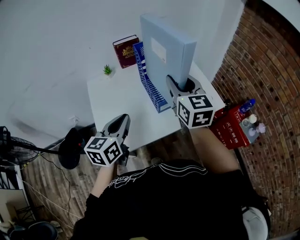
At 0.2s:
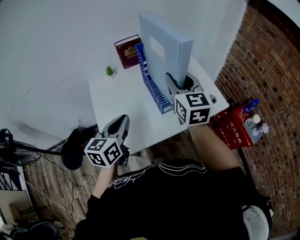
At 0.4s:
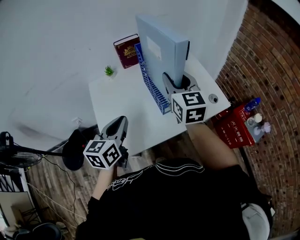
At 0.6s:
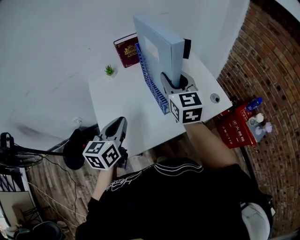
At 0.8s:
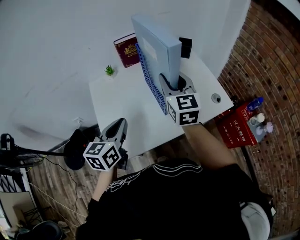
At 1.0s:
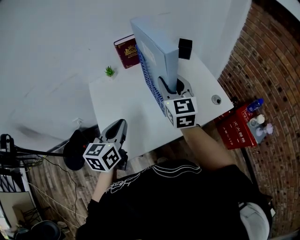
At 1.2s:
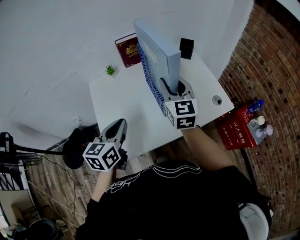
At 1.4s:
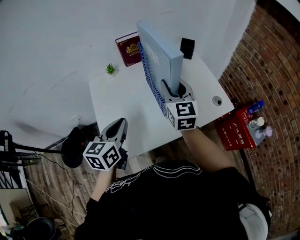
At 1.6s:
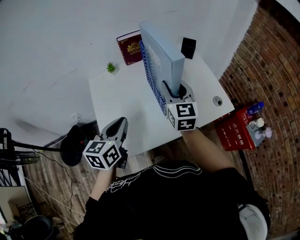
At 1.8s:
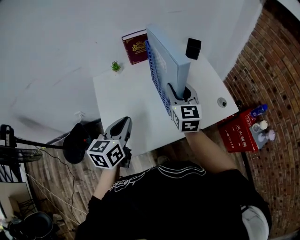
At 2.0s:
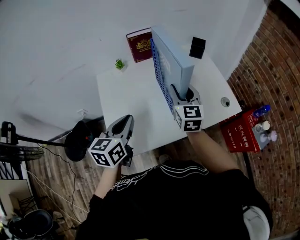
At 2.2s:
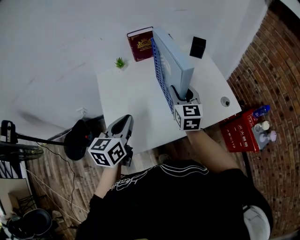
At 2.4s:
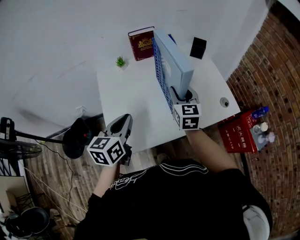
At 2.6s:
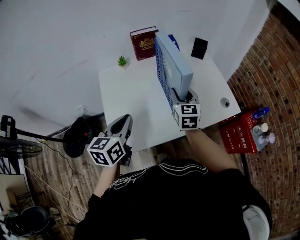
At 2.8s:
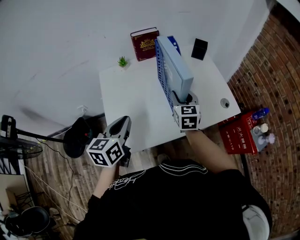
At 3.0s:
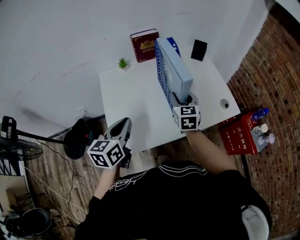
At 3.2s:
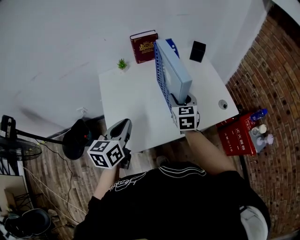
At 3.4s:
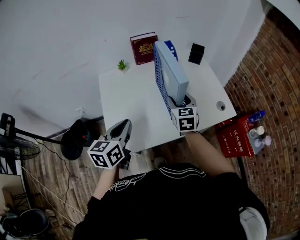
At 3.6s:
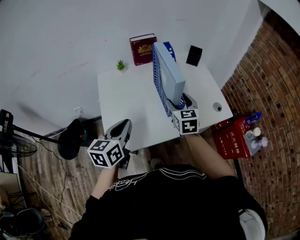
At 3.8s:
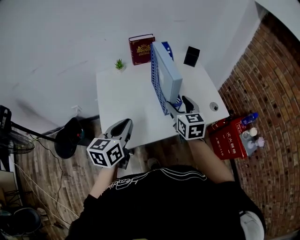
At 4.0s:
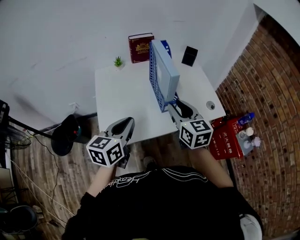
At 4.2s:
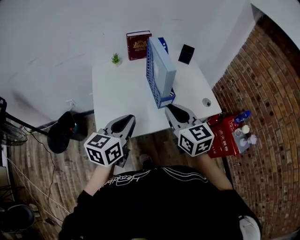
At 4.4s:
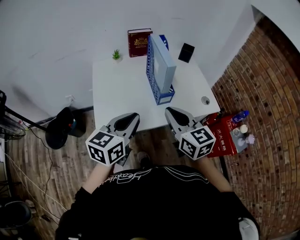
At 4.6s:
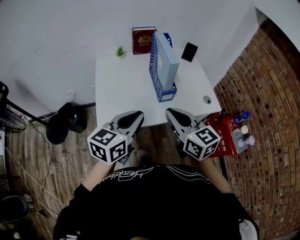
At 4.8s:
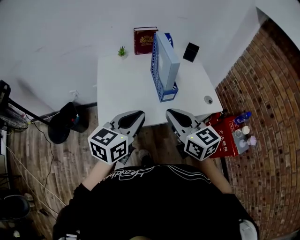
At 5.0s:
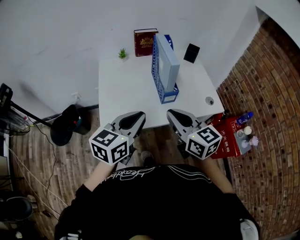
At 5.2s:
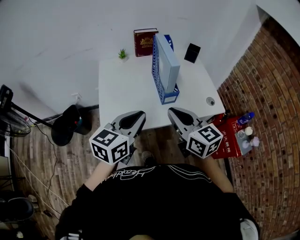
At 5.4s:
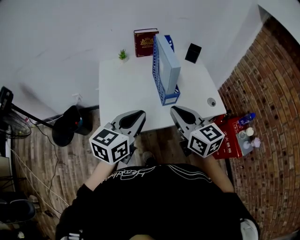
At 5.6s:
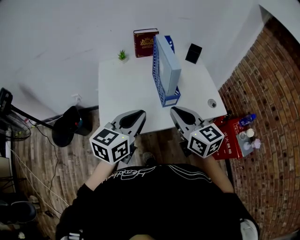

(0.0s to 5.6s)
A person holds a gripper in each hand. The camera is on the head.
0.0s - 1.4s: The left gripper moves roughly 5 cm. Meanwhile the right gripper is displaced downward and forward by roughly 10 cm.
1.4s - 2.8s: The right gripper is displaced downward by approximately 10 cm.
2.8s - 4.2s: The left gripper travels to the right and backward by approximately 10 cm, while the right gripper shifts some 20 cm backward and upward, turns by about 20 degrees, and closes.

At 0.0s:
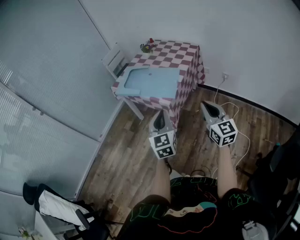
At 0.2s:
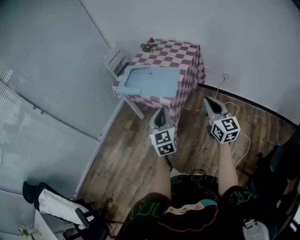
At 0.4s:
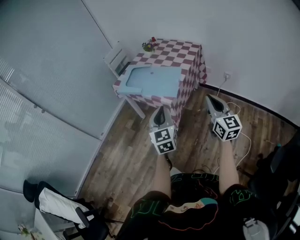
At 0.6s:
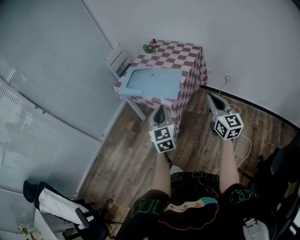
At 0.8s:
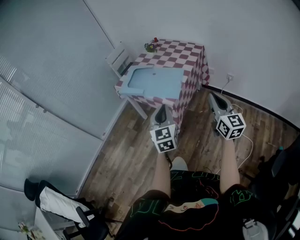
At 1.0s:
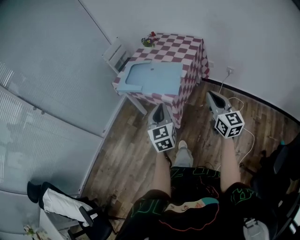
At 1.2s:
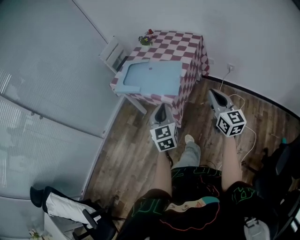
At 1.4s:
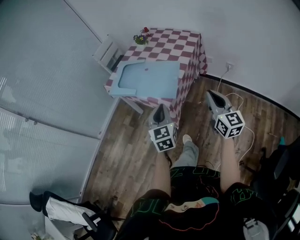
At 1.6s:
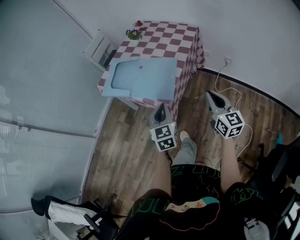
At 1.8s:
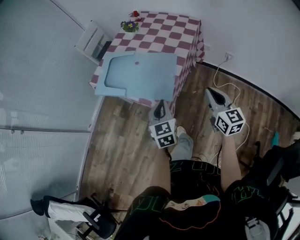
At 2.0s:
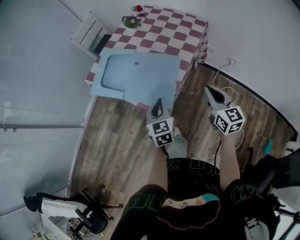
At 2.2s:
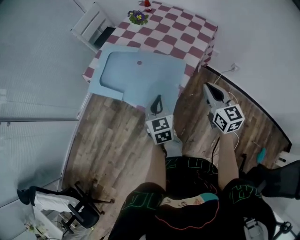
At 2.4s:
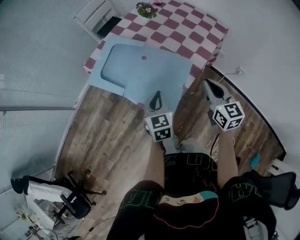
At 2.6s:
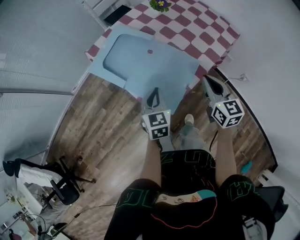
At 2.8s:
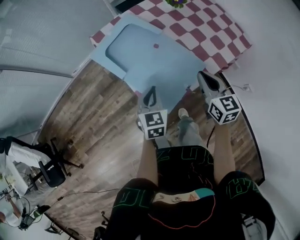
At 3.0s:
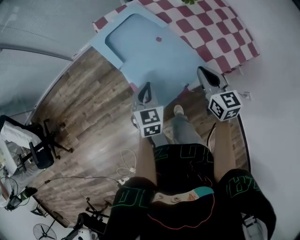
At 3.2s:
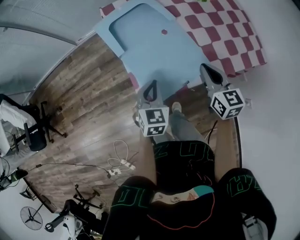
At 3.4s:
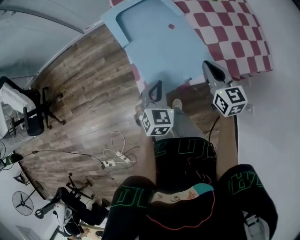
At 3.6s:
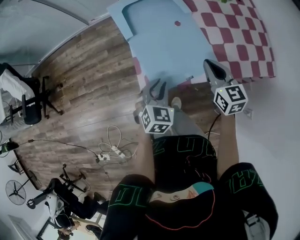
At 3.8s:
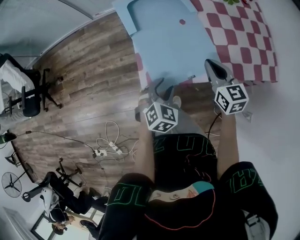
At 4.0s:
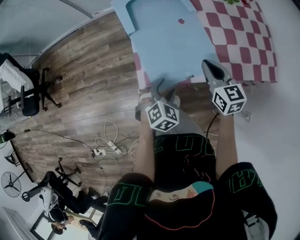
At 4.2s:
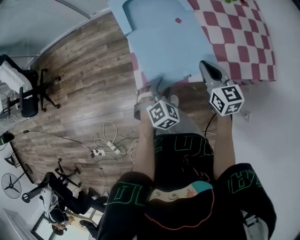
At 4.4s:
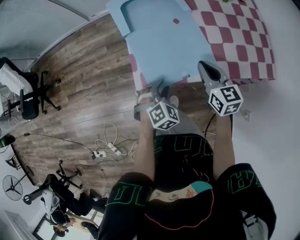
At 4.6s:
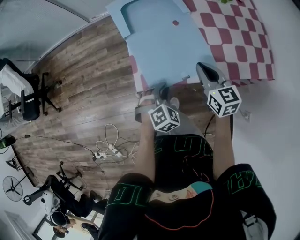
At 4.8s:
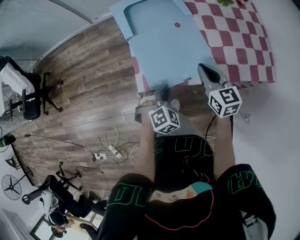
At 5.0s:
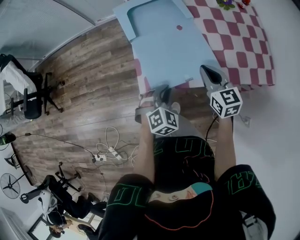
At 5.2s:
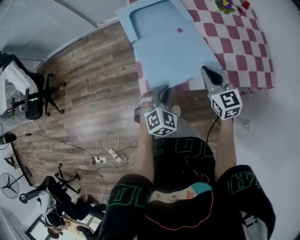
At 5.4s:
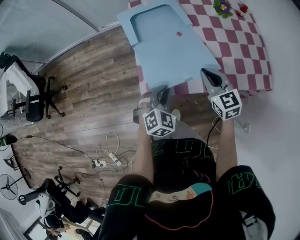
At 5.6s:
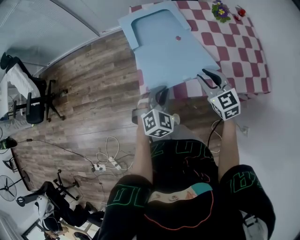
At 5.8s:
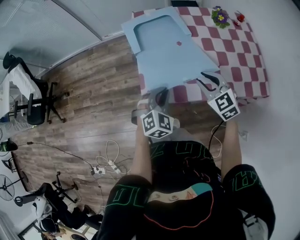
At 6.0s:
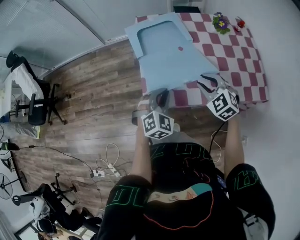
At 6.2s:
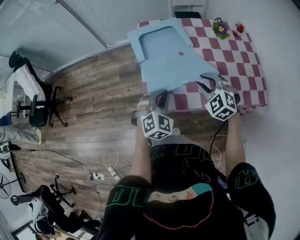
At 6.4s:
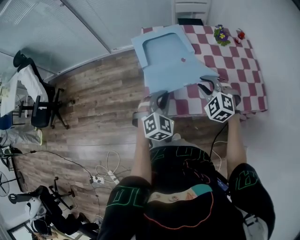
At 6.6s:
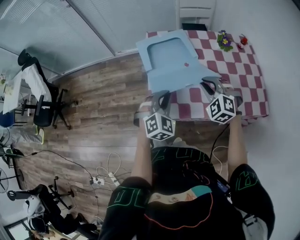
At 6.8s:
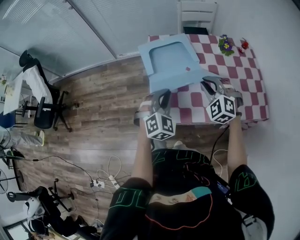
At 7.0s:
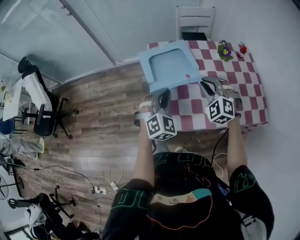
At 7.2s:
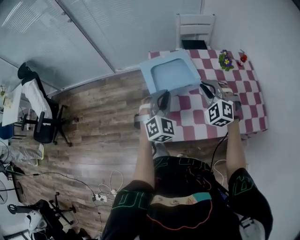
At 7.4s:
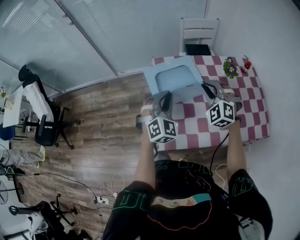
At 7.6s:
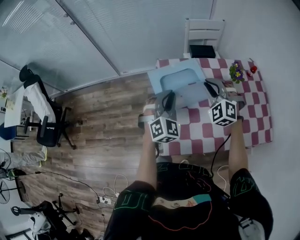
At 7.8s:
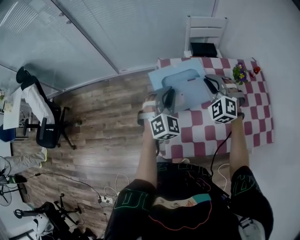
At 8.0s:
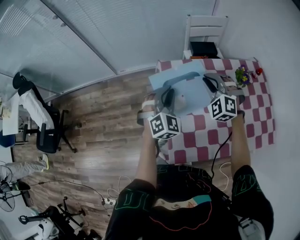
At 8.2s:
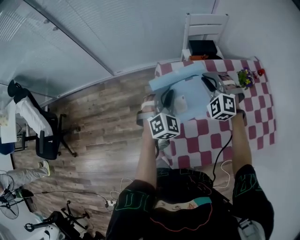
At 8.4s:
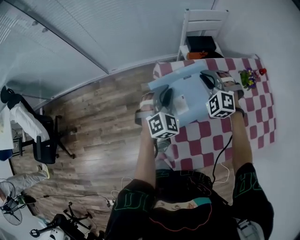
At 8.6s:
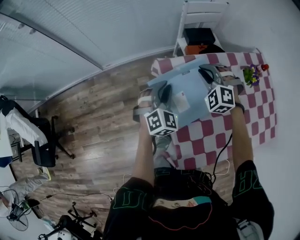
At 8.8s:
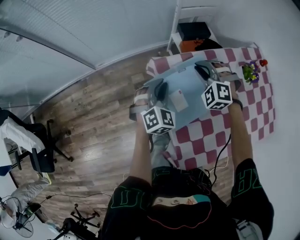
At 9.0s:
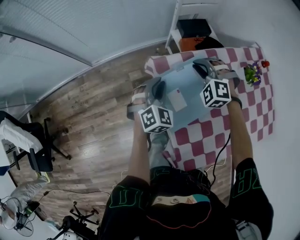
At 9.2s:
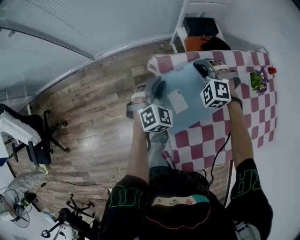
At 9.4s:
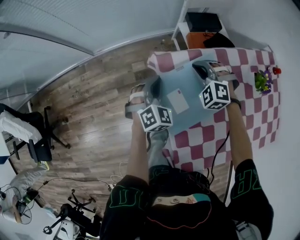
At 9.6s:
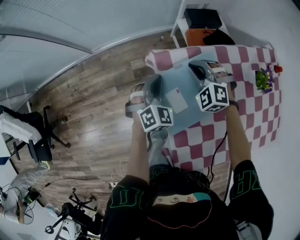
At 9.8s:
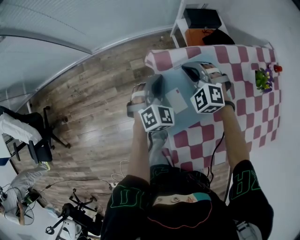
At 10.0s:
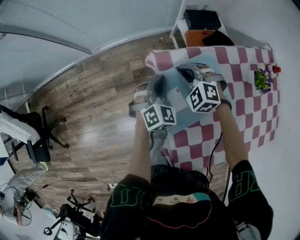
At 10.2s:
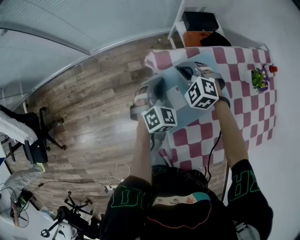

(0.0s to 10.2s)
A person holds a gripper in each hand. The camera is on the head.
0.0s - 1.4s: The left gripper is displaced forward and downward by some 15 cm. The right gripper goes some 10 cm forward.
1.4s - 3.0s: The right gripper changes place by roughly 35 cm, and changes its angle by approximately 50 degrees; the left gripper moves some 25 cm, and turns by some 40 degrees.
3.0s - 4.4s: The right gripper shifts approximately 5 cm downward, while the left gripper heads backward, downward and to the right, covering some 15 cm, rotates roughly 40 degrees, and opens up.
4.4s - 5.8s: The left gripper shifts about 10 cm upward, and closes its fingers. The right gripper turns by approximately 40 degrees, and opens up.
5.8s - 7.2s: Both grippers move forward and upward, approximately 15 cm. The right gripper turns by about 40 degrees.
7.2s - 8.8s: The right gripper travels forward and to the left by about 30 cm. The left gripper travels forward by some 25 cm.
8.8s - 10.2s: The left gripper travels downward by some 5 cm, while the right gripper heads downward and to the left, covering approximately 10 cm, and rotates roughly 20 degrees.

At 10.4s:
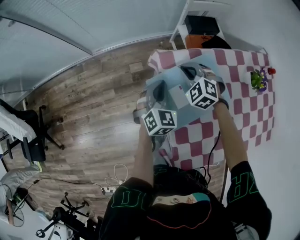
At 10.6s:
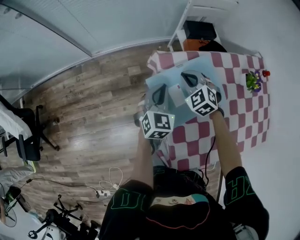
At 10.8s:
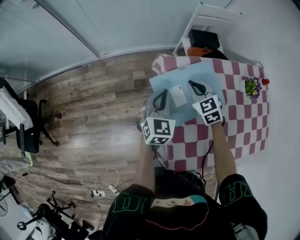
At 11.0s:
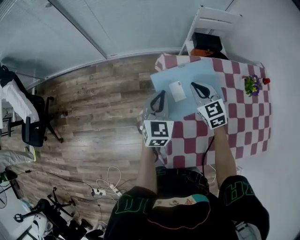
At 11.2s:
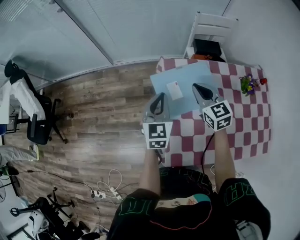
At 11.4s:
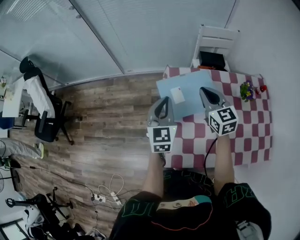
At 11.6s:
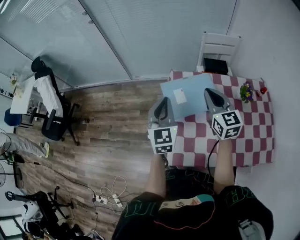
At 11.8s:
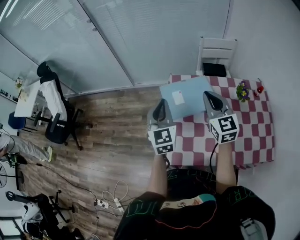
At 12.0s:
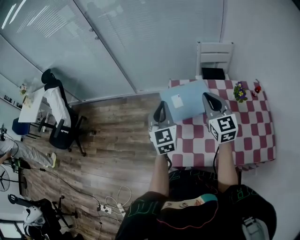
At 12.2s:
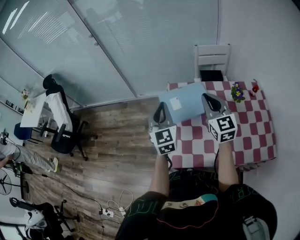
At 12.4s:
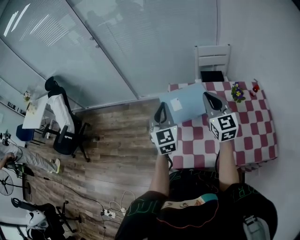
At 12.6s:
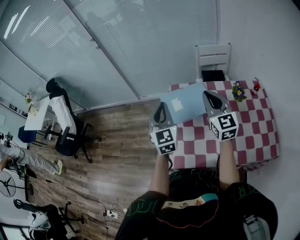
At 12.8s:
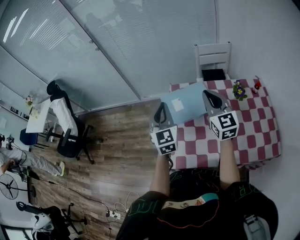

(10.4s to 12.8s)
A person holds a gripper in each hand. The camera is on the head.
10.4s - 11.6s: The grippers both shift upward and backward by approximately 30 cm. The right gripper tips its fingers upward by about 40 degrees. Meanwhile the left gripper turns by roughly 40 degrees.
11.6s - 12.8s: The right gripper shifts about 10 cm upward and backward; the left gripper moves about 5 cm.

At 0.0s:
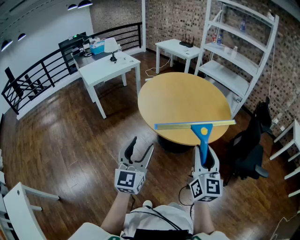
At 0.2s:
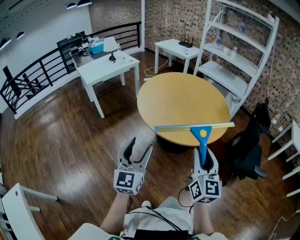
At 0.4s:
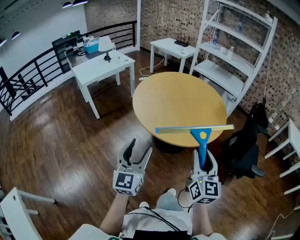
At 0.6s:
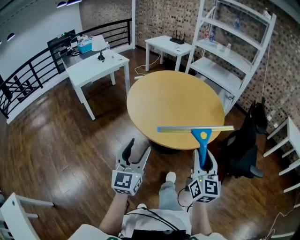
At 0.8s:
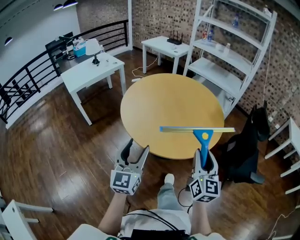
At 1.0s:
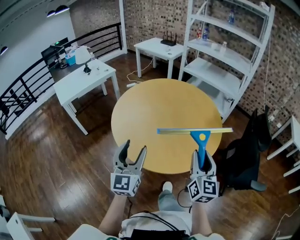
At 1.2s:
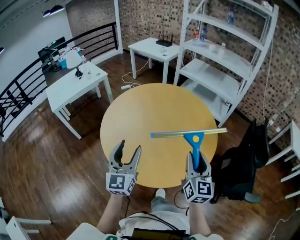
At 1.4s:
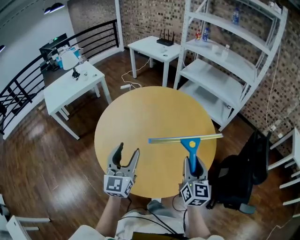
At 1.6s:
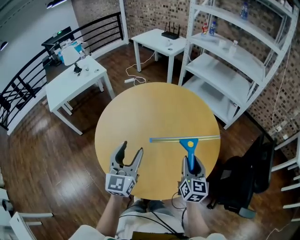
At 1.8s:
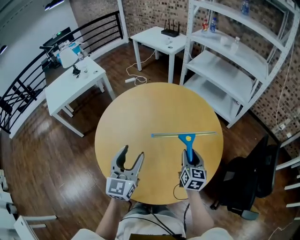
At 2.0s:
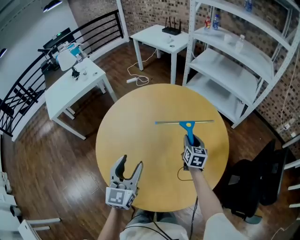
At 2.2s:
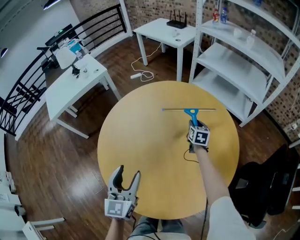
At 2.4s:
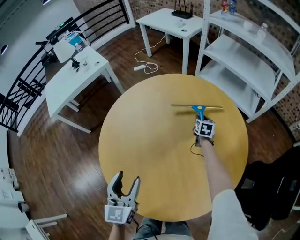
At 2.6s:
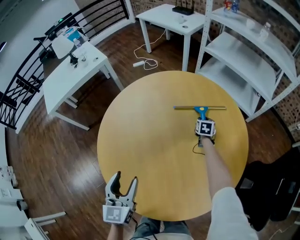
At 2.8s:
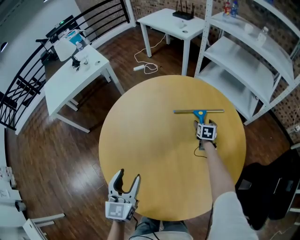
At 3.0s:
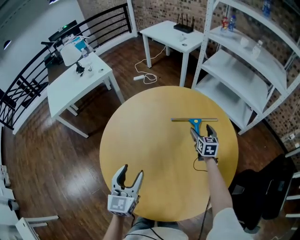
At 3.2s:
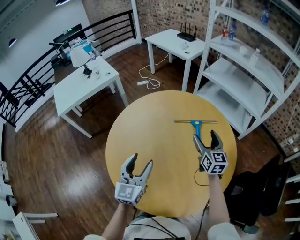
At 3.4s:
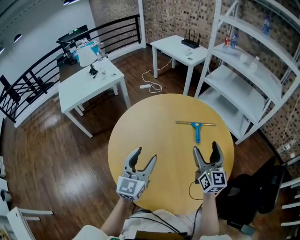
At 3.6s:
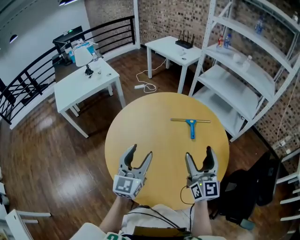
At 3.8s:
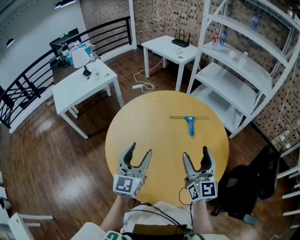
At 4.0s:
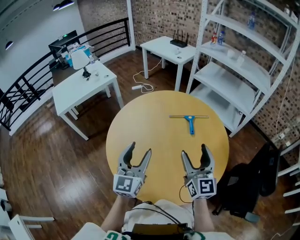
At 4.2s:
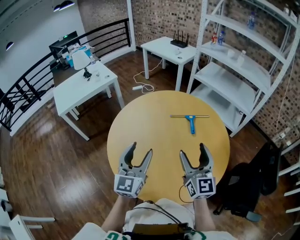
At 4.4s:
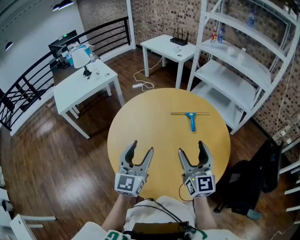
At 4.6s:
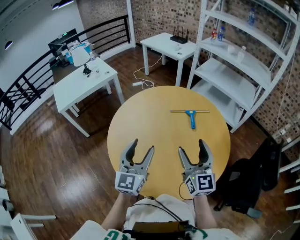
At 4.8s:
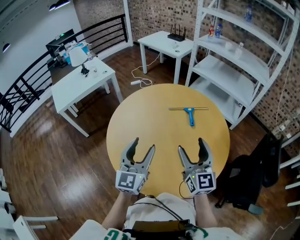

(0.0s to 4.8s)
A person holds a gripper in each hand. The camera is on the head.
0.0s - 1.6s: The pair of grippers is taken forward, approximately 50 cm. The right gripper swivels some 20 degrees.
1.6s - 3.2s: The right gripper heads forward, covering approximately 25 cm, and opens. Meanwhile the left gripper travels forward and downward by about 10 cm.
3.2s - 4.8s: The left gripper travels backward and upward by some 10 cm; the right gripper heads backward, upward and to the left, covering about 25 cm.
